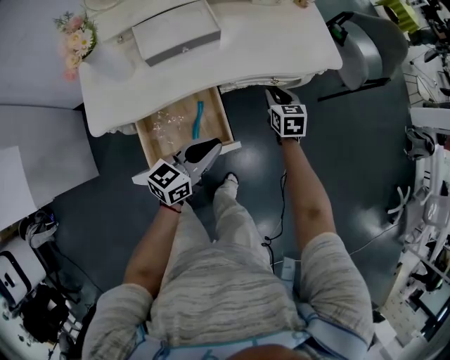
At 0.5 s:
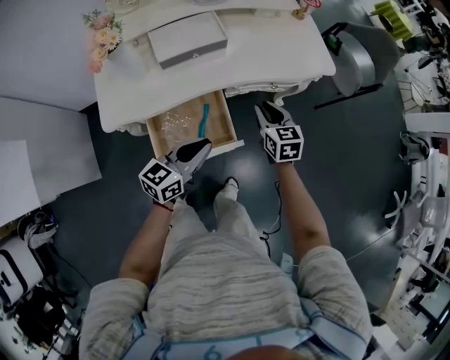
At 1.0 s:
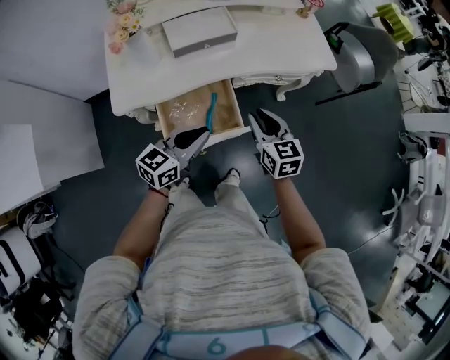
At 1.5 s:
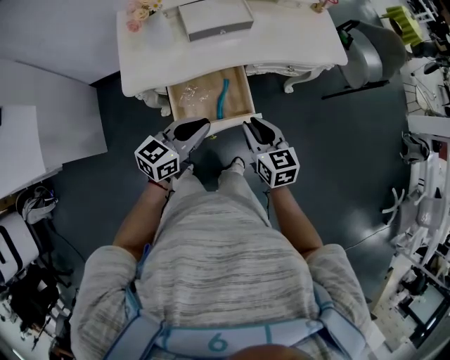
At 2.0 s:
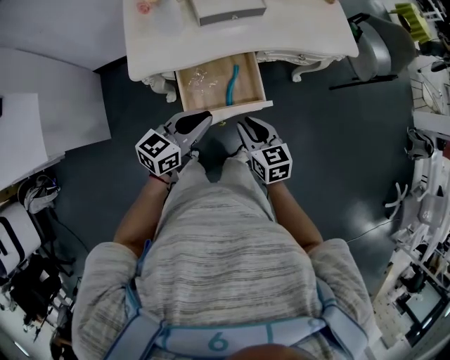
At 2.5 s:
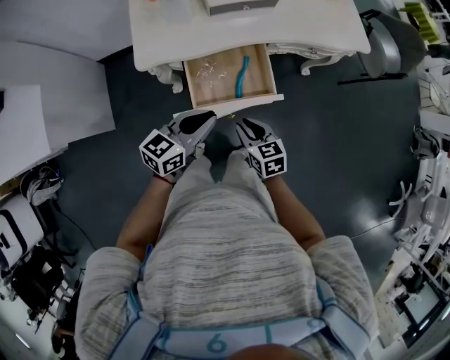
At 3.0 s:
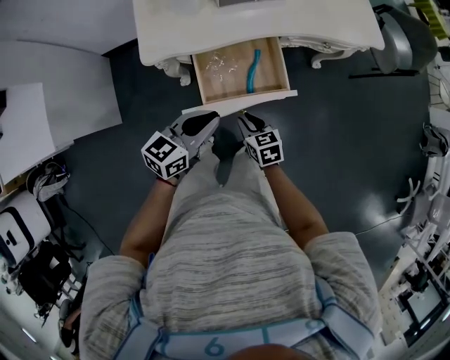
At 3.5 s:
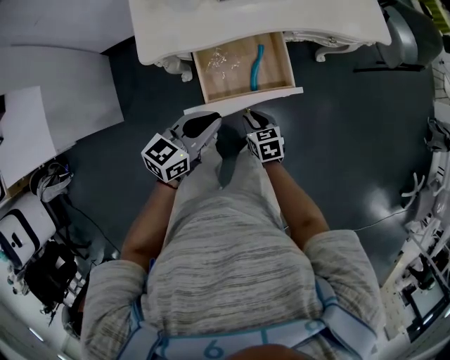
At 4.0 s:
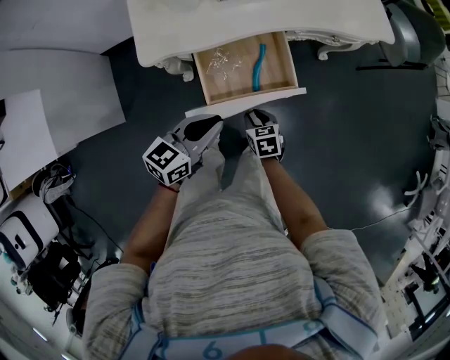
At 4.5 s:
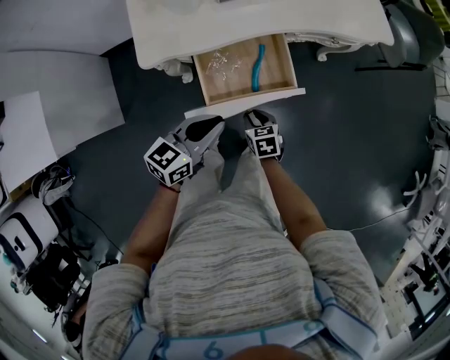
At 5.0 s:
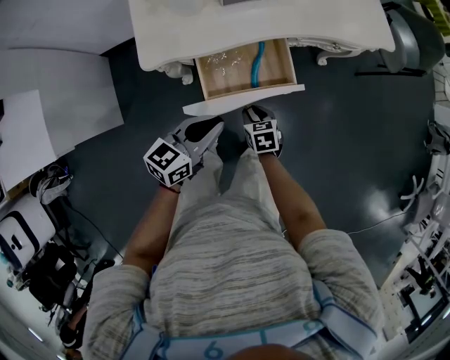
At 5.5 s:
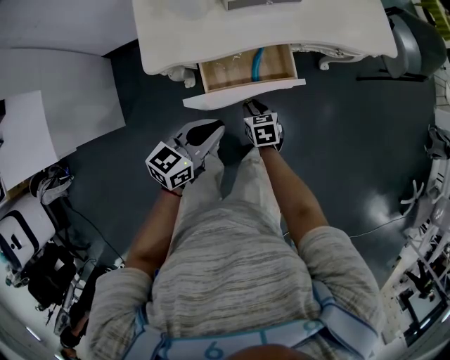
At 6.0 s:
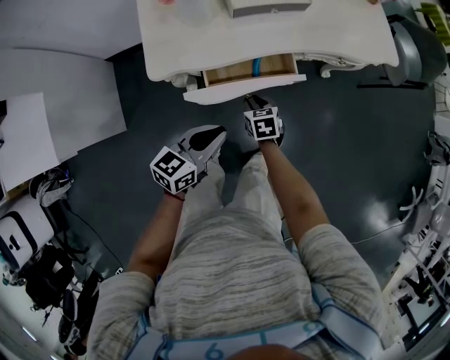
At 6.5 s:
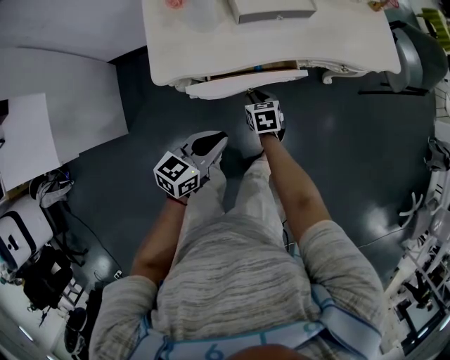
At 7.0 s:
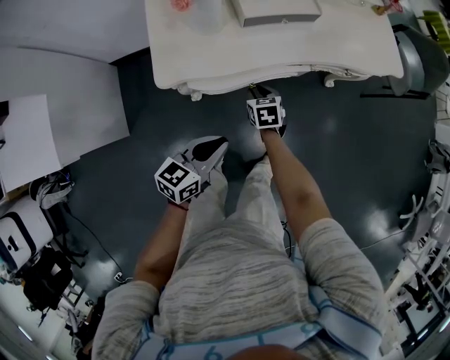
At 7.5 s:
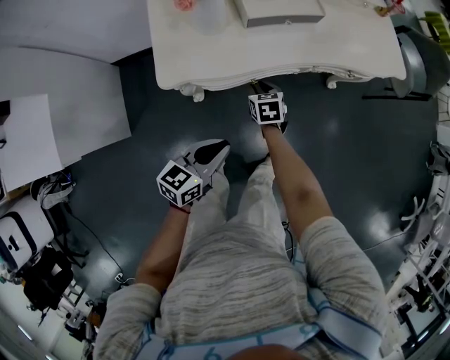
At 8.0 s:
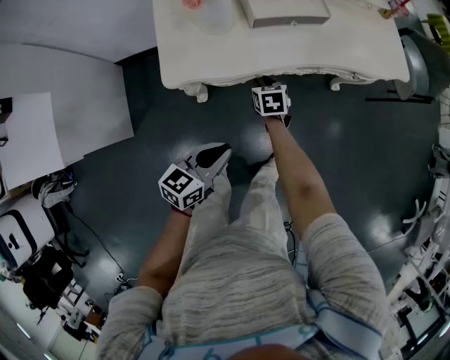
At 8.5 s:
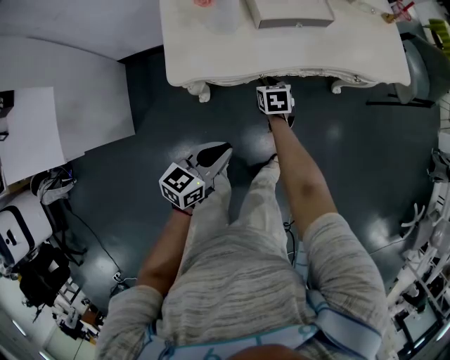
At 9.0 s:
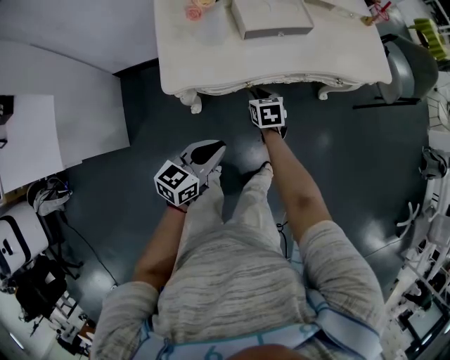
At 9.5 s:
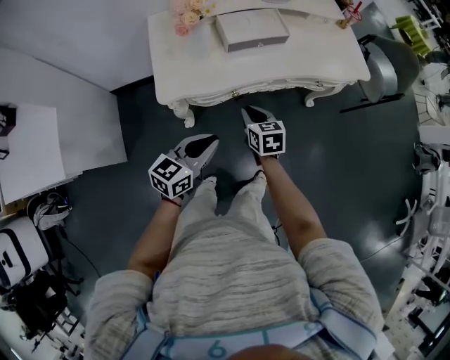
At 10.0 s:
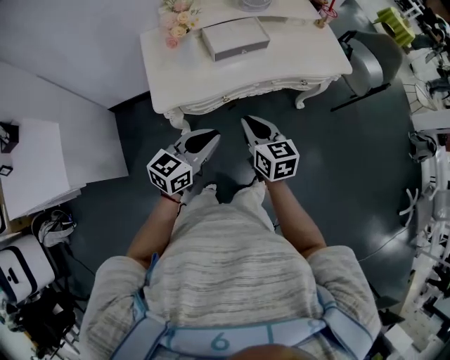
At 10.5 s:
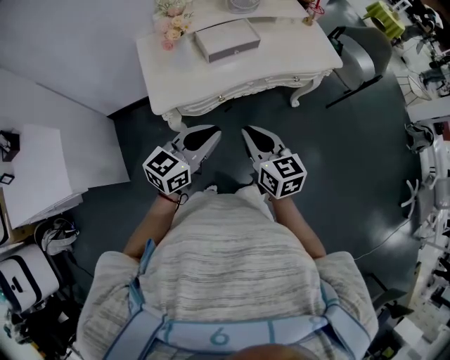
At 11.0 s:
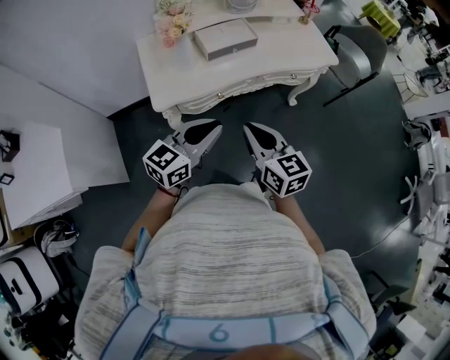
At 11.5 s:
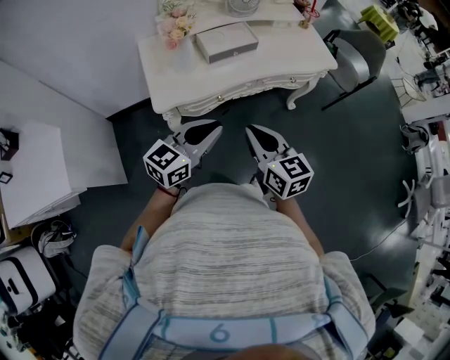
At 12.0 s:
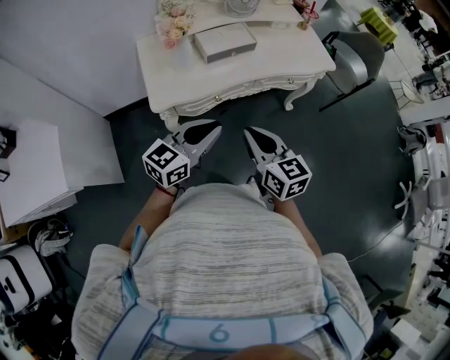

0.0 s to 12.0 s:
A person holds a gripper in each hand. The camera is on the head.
0.0 to 2.0 s: The left gripper goes about 20 cm to the left, backward and upward; the right gripper heads backward and to the left, covering about 35 cm, and changes its angle by roughly 20 degrees.
2.0 to 4.0 s: The right gripper travels downward by about 20 cm, and swivels some 20 degrees. The left gripper goes roughly 5 cm downward.
4.0 to 6.0 s: The right gripper is displaced forward by about 10 cm.
6.0 to 8.0 s: The right gripper shifts some 10 cm forward.
8.0 to 10.0 s: The right gripper heads upward and backward, covering approximately 30 cm, and turns by roughly 30 degrees; the left gripper moves upward, approximately 15 cm.
10.0 to 12.0 s: The right gripper is displaced upward and backward by roughly 10 cm. The left gripper goes roughly 5 cm upward.

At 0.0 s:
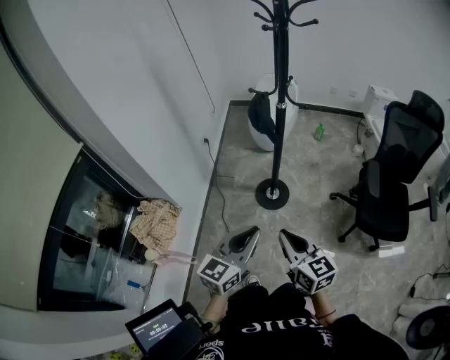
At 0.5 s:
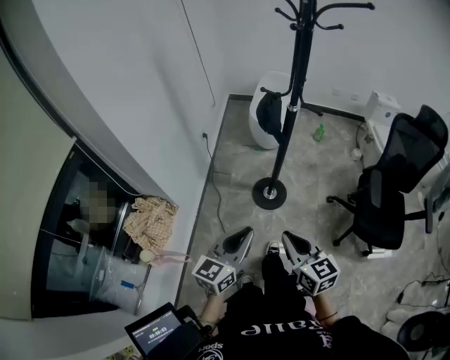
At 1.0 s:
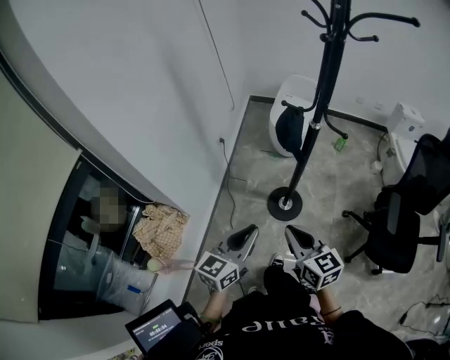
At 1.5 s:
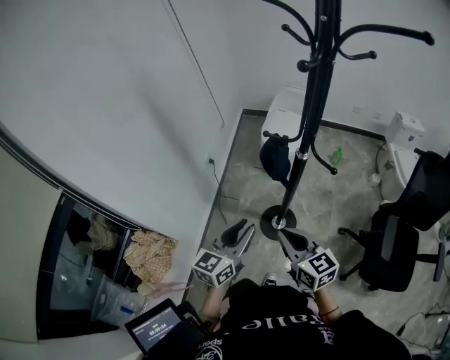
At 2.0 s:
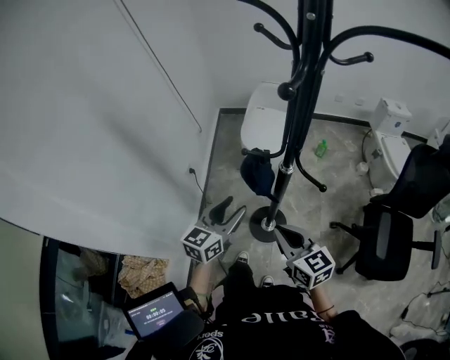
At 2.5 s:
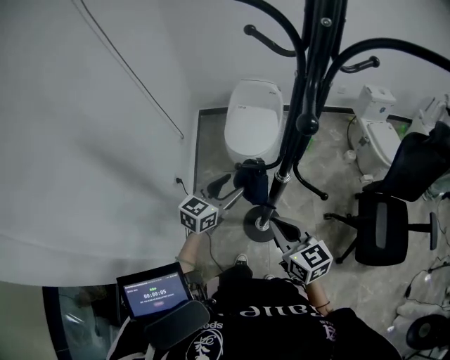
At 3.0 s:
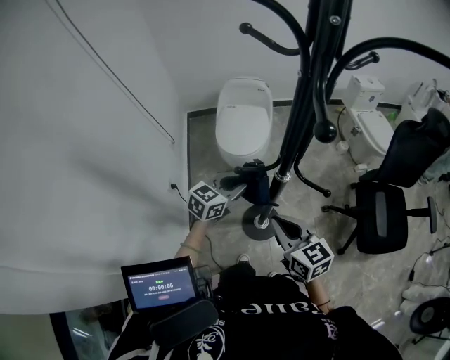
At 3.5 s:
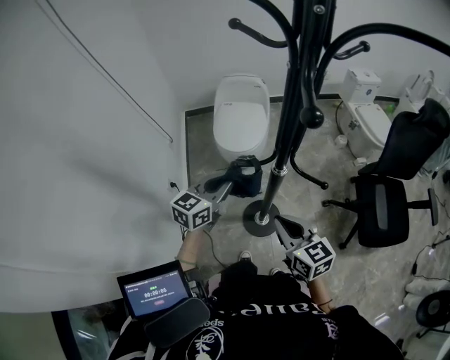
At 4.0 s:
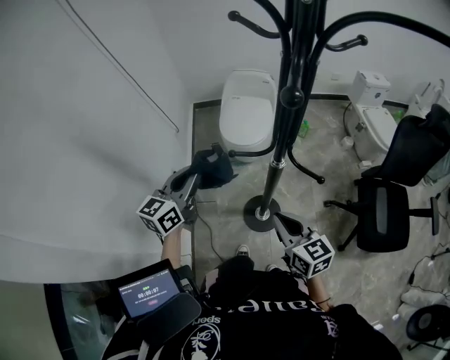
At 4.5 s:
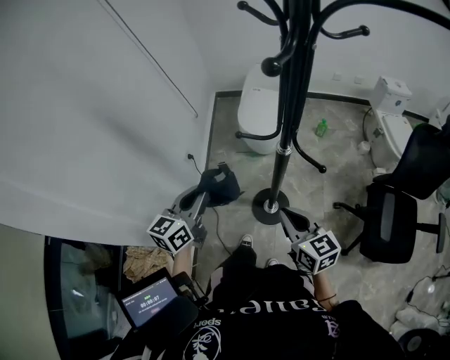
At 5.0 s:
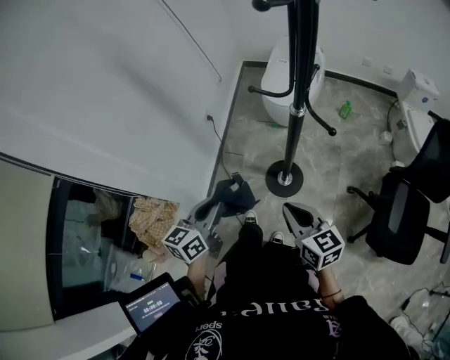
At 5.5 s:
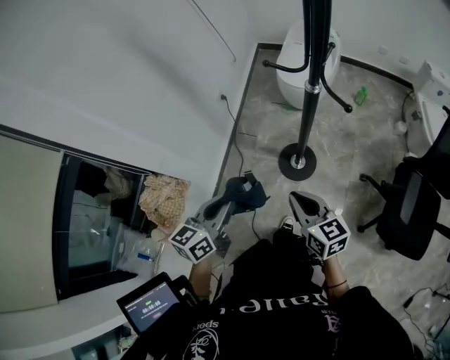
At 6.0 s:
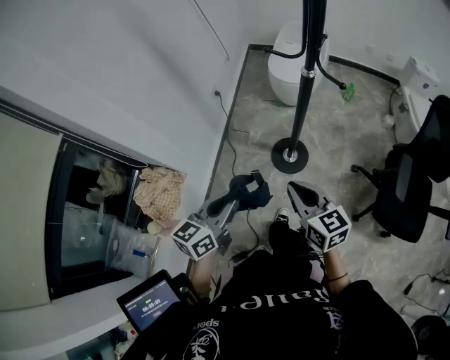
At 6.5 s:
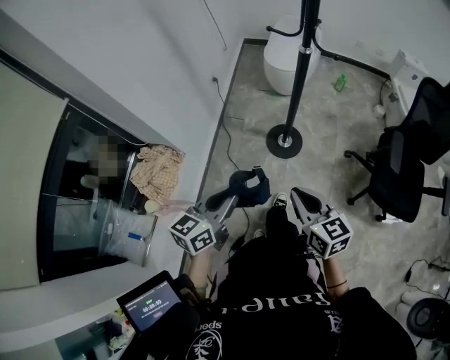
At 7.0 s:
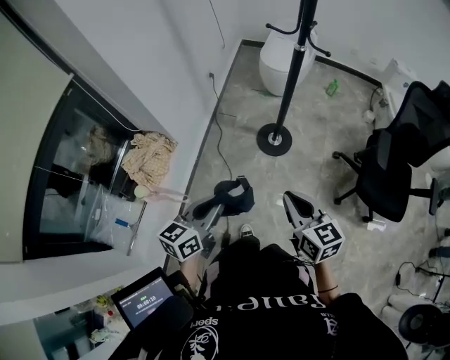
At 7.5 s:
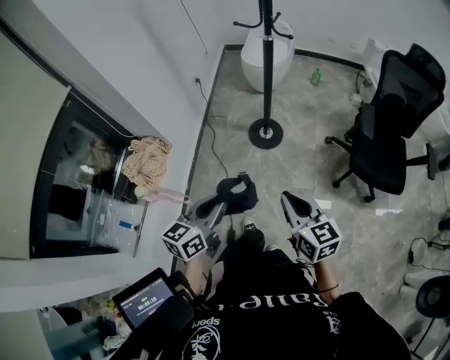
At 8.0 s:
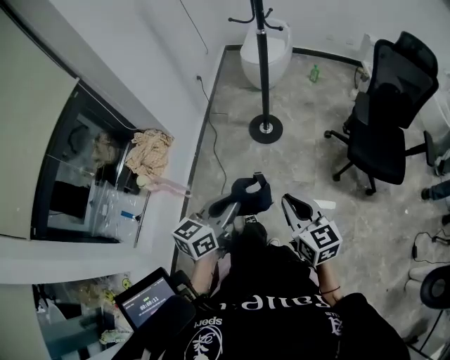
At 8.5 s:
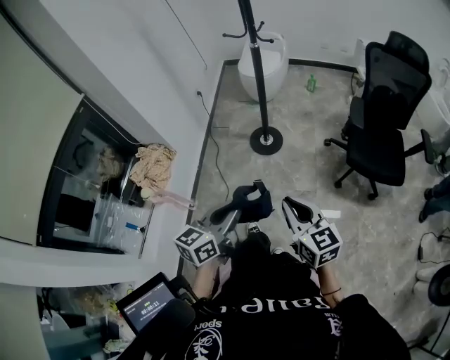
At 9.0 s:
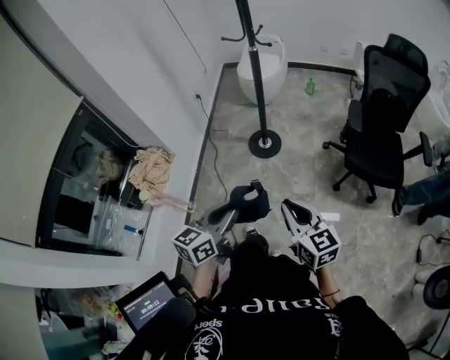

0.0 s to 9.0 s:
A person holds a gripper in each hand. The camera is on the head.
0.0 to 2.0 s: The two grippers go approximately 40 cm forward. The left gripper opens up.
2.0 to 4.5 s: The left gripper is displaced to the left by roughly 10 cm, goes forward and returns, some 15 cm each way, and closes its fingers.
4.5 to 7.0 s: The two grippers travel together, backward, approximately 50 cm.
7.0 to 9.0 s: Both grippers travel together backward and to the right, some 20 cm.

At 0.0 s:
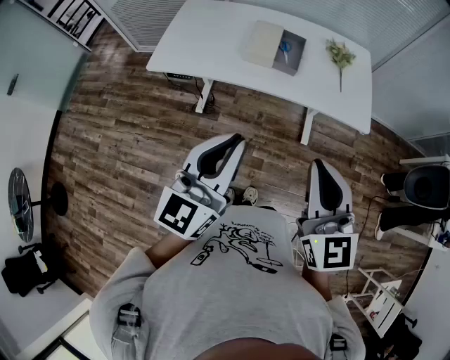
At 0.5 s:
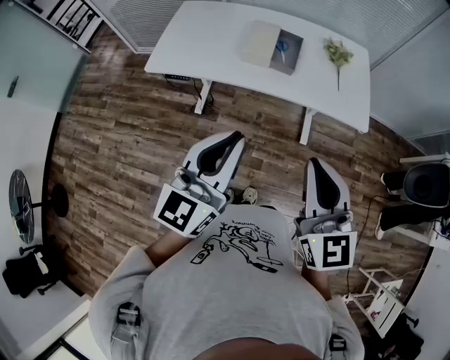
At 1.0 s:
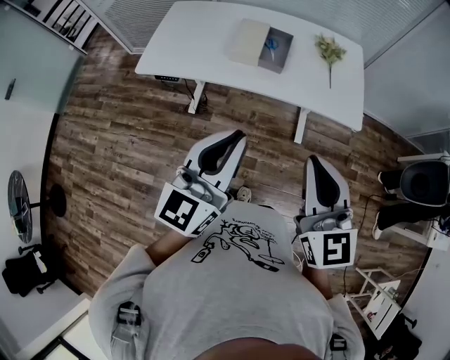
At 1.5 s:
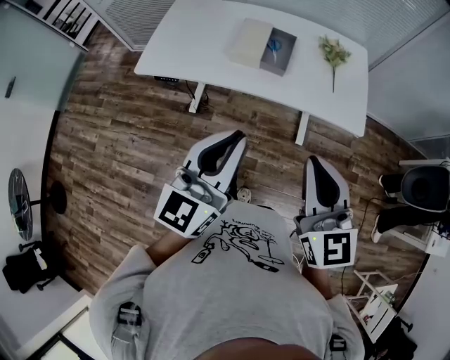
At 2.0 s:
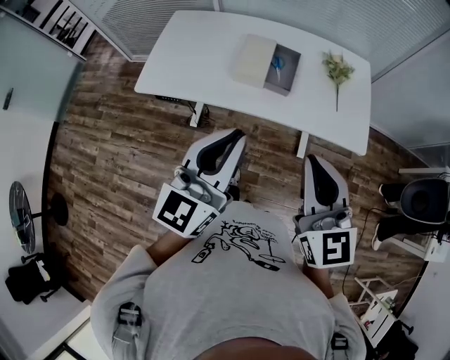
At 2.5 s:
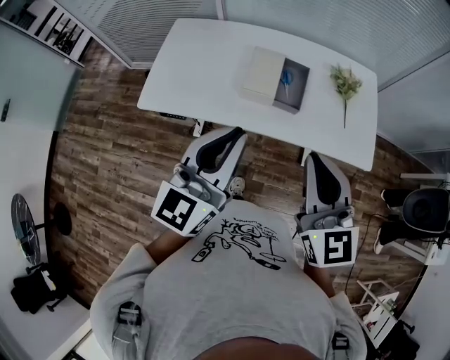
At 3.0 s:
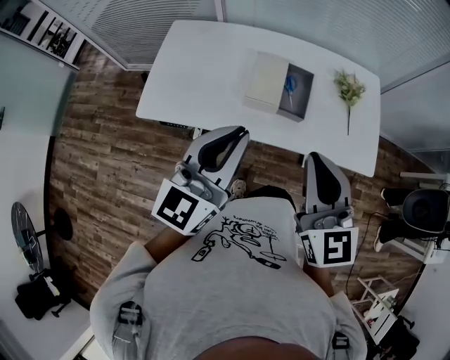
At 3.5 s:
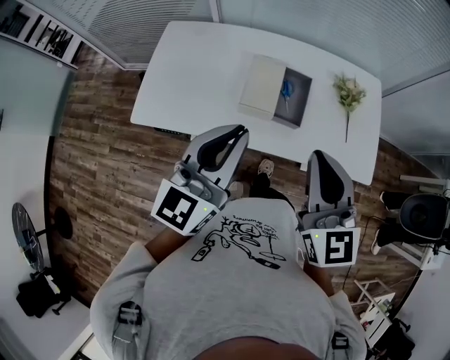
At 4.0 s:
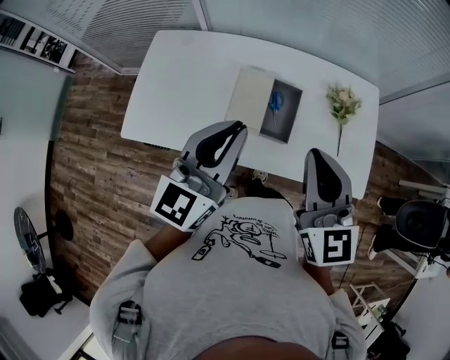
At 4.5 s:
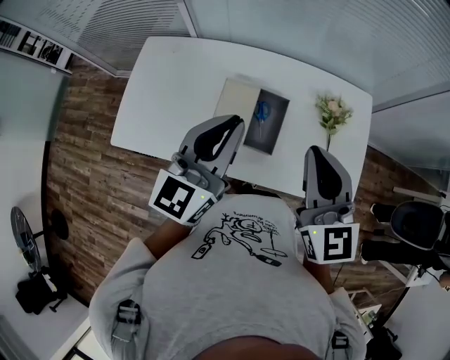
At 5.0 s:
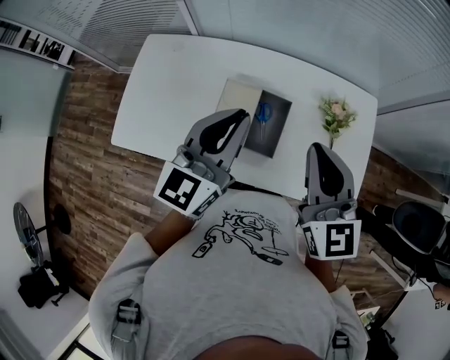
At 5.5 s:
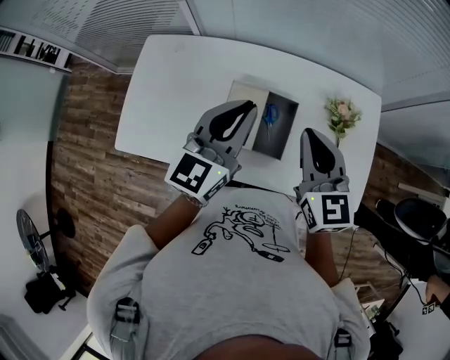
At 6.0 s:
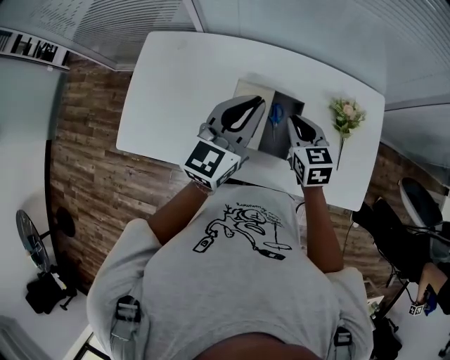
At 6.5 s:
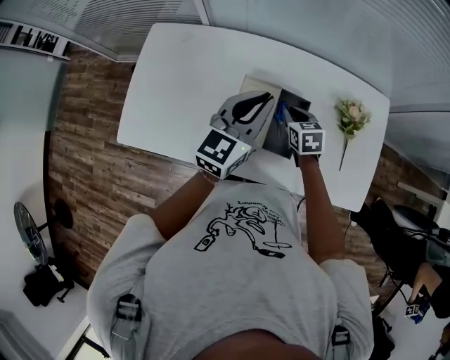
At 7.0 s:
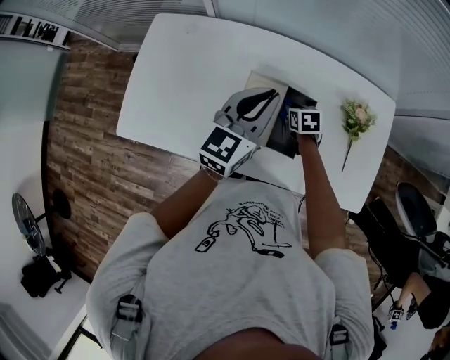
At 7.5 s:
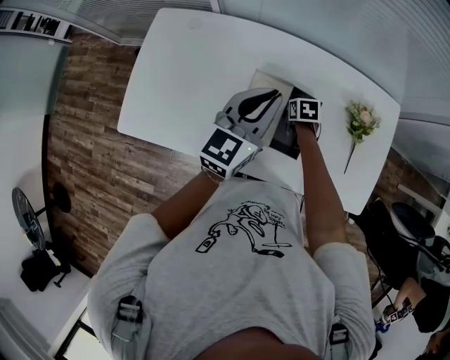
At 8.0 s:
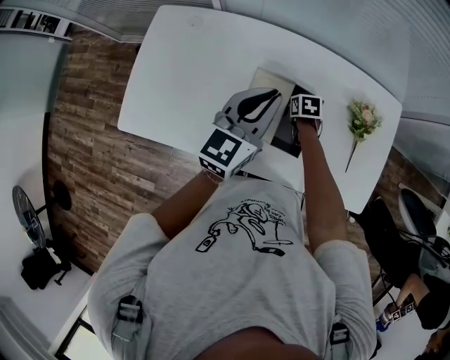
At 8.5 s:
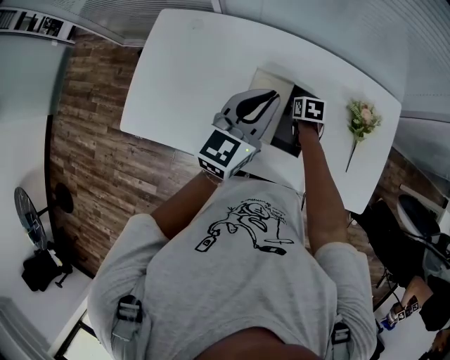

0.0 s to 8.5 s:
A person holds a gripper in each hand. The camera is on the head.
0.0 to 2.0 s: Both grippers travel together forward, about 15 cm.
2.0 to 4.0 s: Both grippers move forward, roughly 25 cm.
4.0 to 6.5 s: The right gripper heads downward and forward, covering roughly 40 cm, and points its fingers roughly 40 degrees further downward. The left gripper is displaced forward and downward by roughly 20 cm.
6.5 to 8.5 s: The right gripper shifts roughly 10 cm downward, and swivels some 20 degrees.
